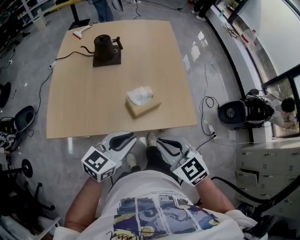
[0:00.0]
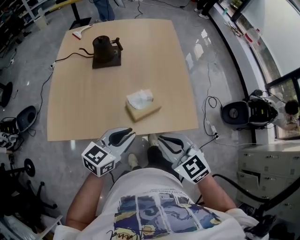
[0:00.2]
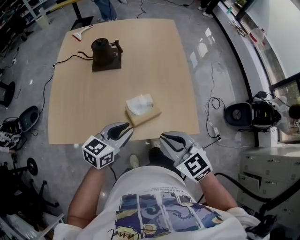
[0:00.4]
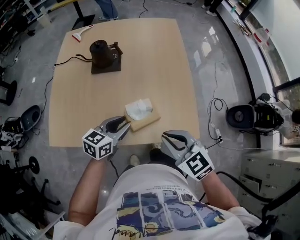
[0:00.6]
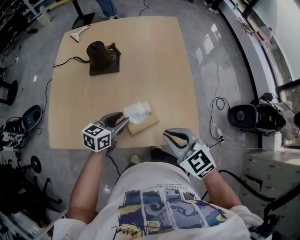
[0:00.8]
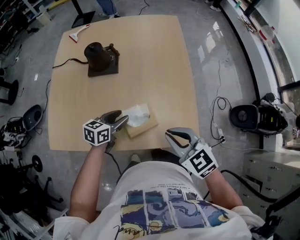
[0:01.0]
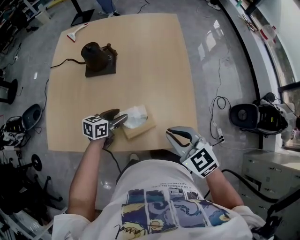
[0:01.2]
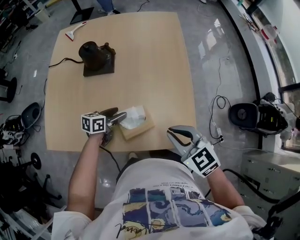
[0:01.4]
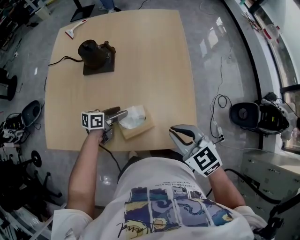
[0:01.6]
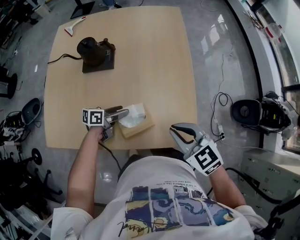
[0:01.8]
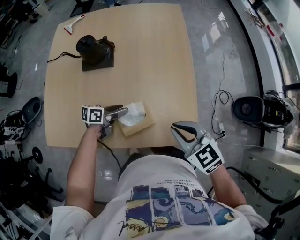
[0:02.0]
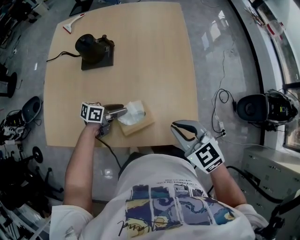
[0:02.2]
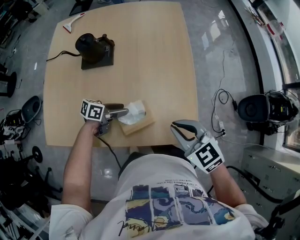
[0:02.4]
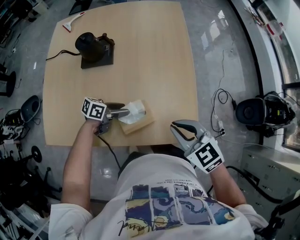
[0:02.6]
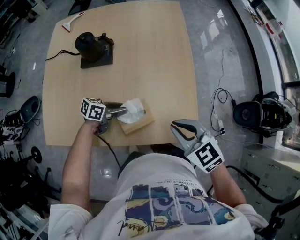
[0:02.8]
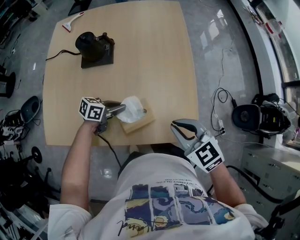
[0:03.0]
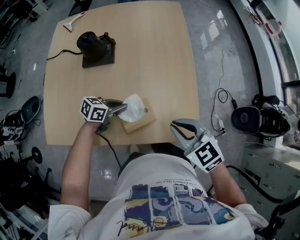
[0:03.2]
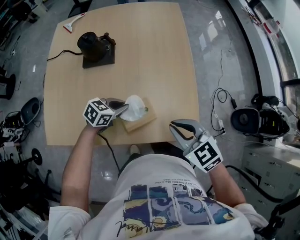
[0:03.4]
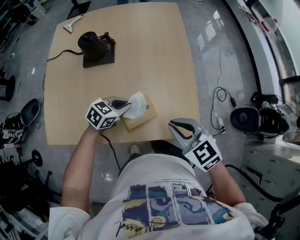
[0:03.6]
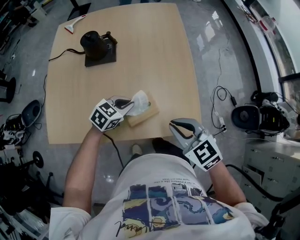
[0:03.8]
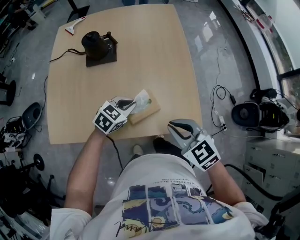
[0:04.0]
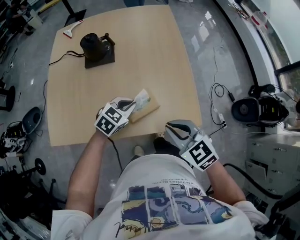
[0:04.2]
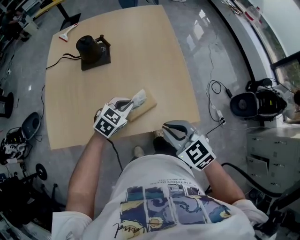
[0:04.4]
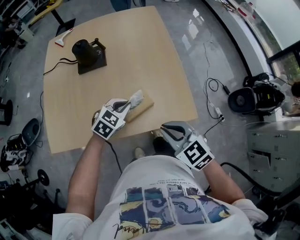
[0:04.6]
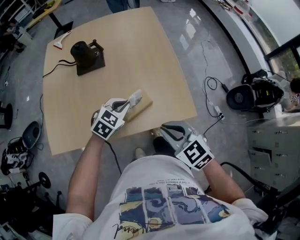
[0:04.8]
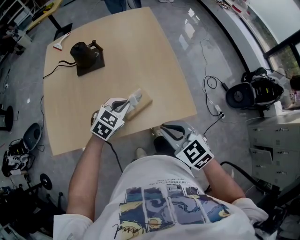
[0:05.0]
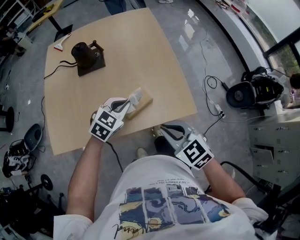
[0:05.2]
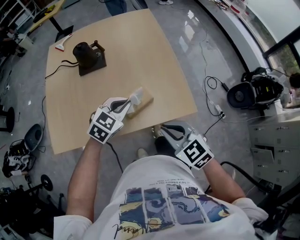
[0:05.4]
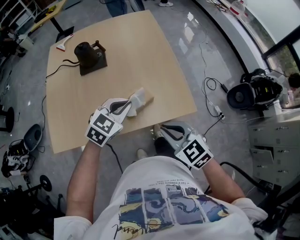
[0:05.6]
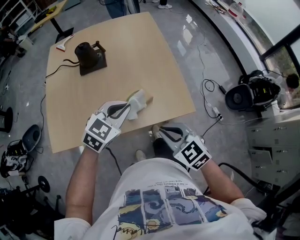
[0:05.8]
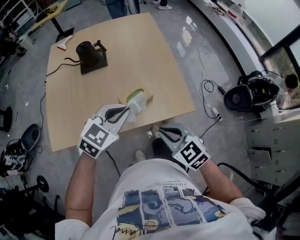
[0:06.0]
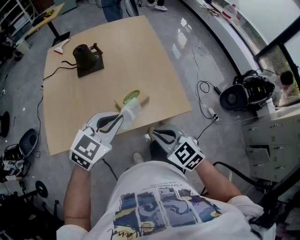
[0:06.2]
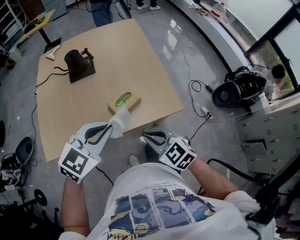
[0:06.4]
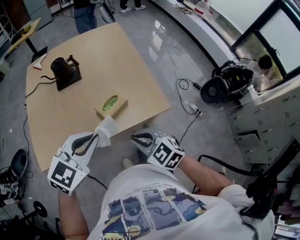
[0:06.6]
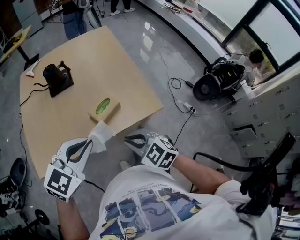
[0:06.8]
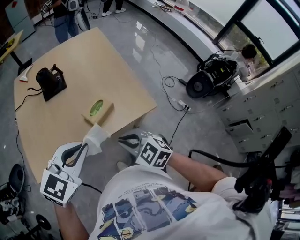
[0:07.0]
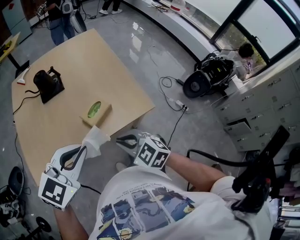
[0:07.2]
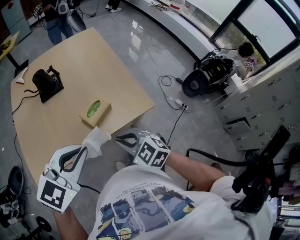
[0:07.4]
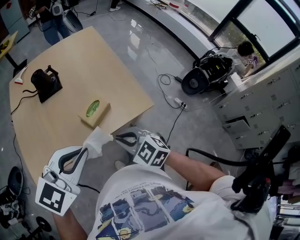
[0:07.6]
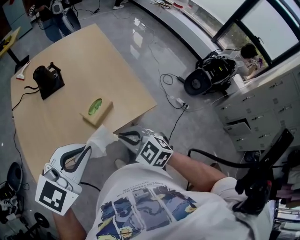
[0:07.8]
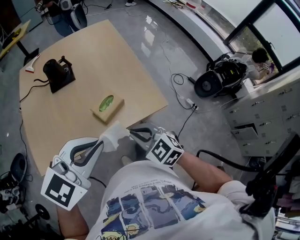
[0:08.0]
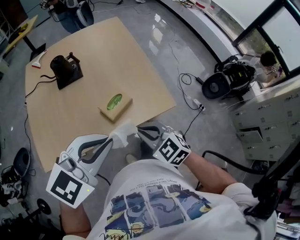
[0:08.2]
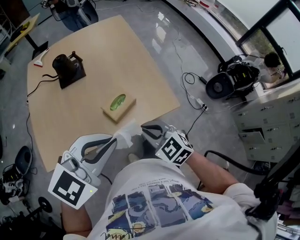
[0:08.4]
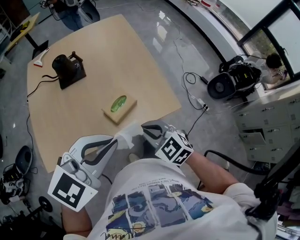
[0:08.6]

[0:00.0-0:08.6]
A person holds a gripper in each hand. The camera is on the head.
0:00.0 to 0:01.4: The right gripper travels forward and to the right by roughly 20 cm. The left gripper is displaced forward and downward by some 30 cm, changes its angle by roughly 40 degrees, and opens up.
0:01.4 to 0:02.8: The left gripper changes its angle by approximately 20 degrees, and closes up.
0:02.8 to 0:04.4: The right gripper moves roughly 10 cm. Meanwhile the left gripper is displaced upward by roughly 10 cm, rolls clockwise, seen from behind, by about 50 degrees, and closes up.
0:04.4 to 0:05.8: The left gripper is displaced upward and backward by some 15 cm. The right gripper shifts about 5 cm backward.
0:05.8 to 0:07.2: The left gripper goes about 15 cm backward and upward, while the right gripper ends up roughly 5 cm from where it was.
0:07.2 to 0:08.6: The right gripper is displaced forward by roughly 5 cm. The left gripper changes place by some 5 cm.

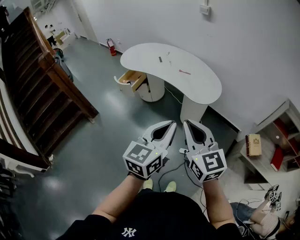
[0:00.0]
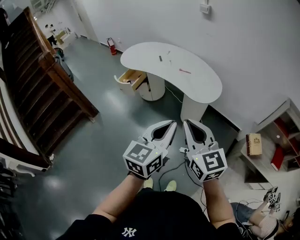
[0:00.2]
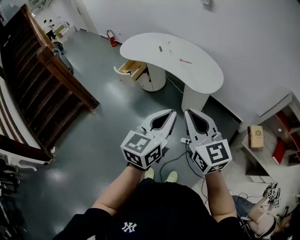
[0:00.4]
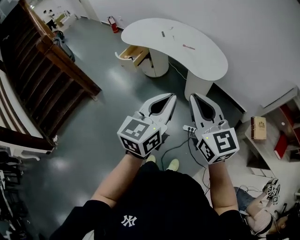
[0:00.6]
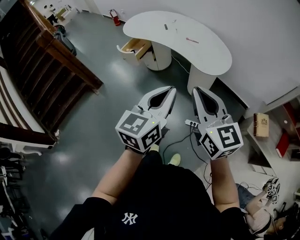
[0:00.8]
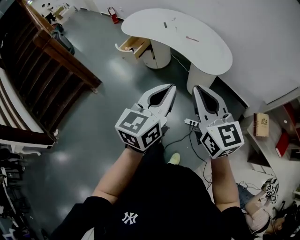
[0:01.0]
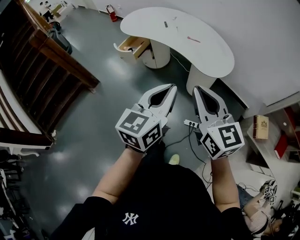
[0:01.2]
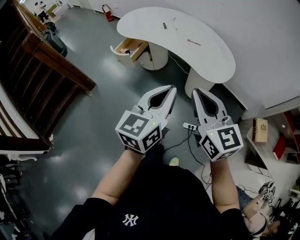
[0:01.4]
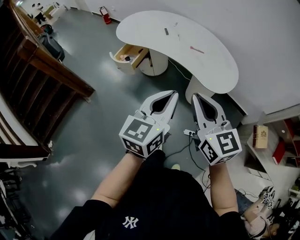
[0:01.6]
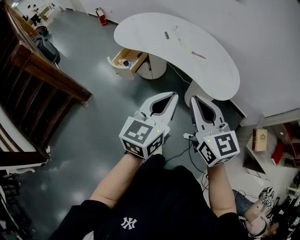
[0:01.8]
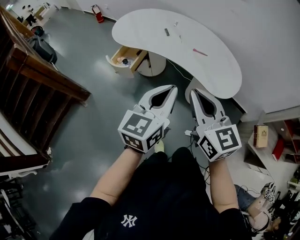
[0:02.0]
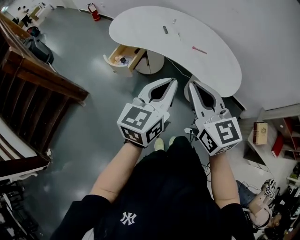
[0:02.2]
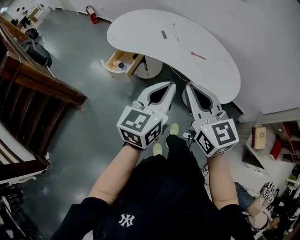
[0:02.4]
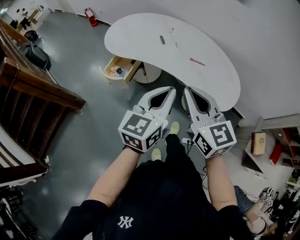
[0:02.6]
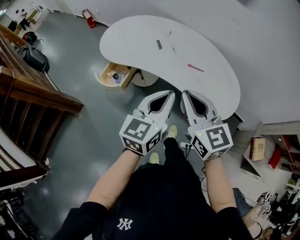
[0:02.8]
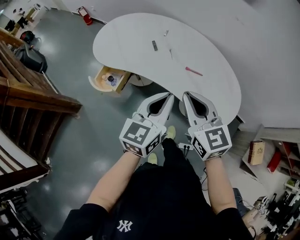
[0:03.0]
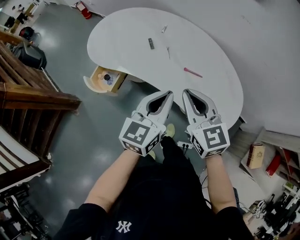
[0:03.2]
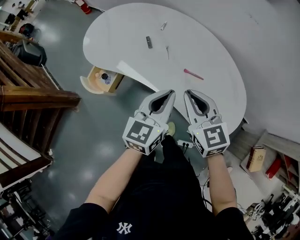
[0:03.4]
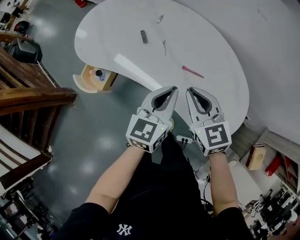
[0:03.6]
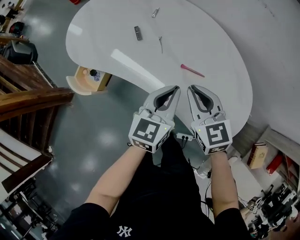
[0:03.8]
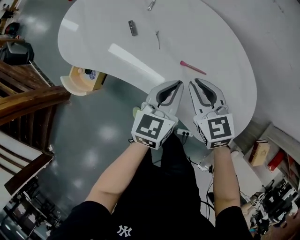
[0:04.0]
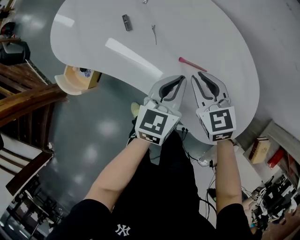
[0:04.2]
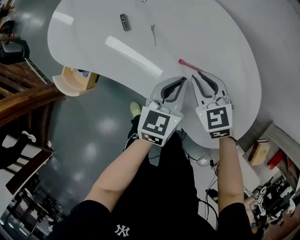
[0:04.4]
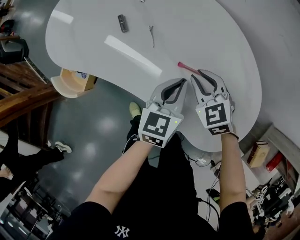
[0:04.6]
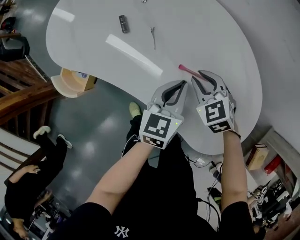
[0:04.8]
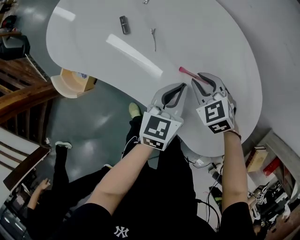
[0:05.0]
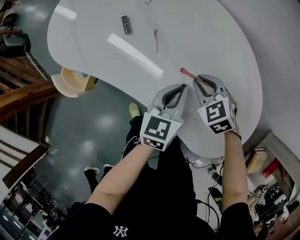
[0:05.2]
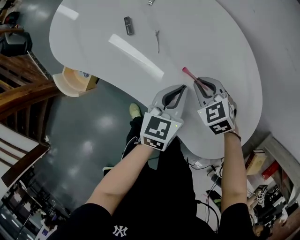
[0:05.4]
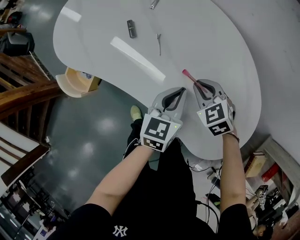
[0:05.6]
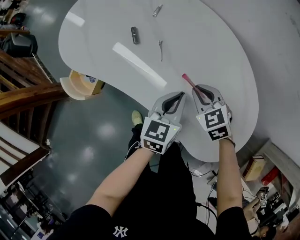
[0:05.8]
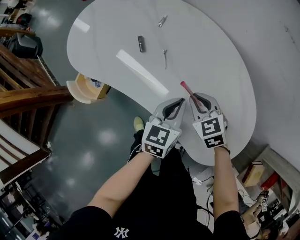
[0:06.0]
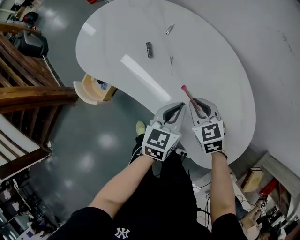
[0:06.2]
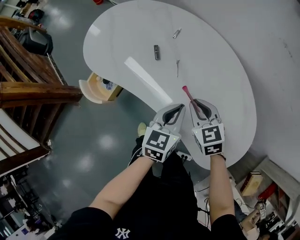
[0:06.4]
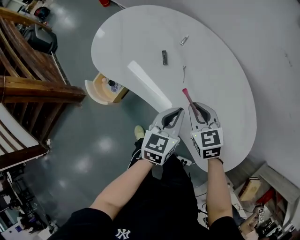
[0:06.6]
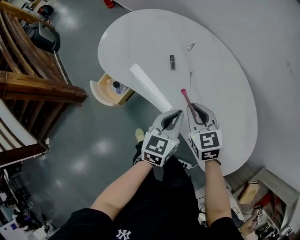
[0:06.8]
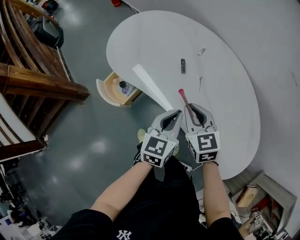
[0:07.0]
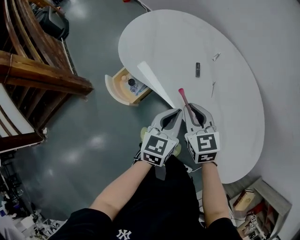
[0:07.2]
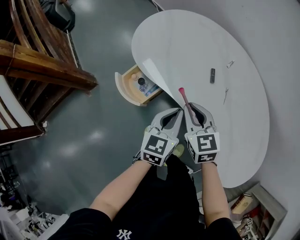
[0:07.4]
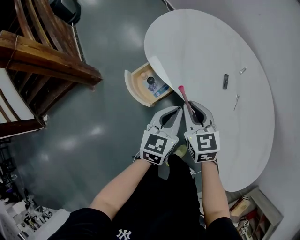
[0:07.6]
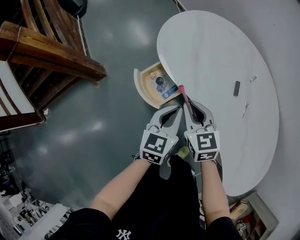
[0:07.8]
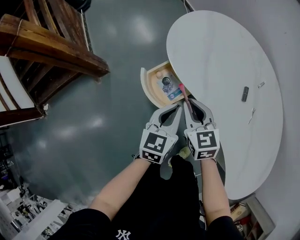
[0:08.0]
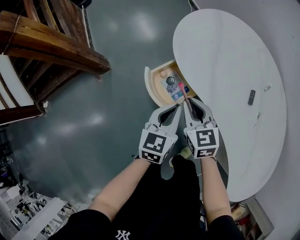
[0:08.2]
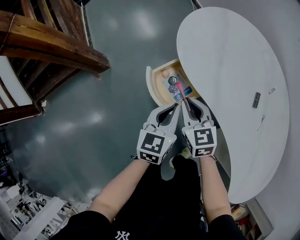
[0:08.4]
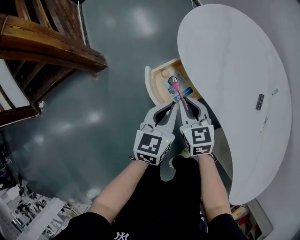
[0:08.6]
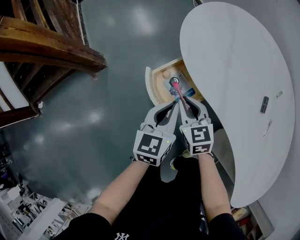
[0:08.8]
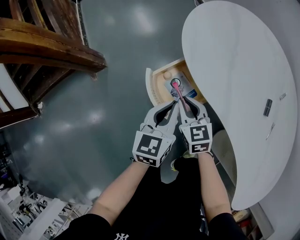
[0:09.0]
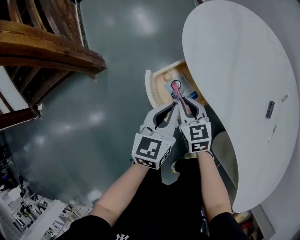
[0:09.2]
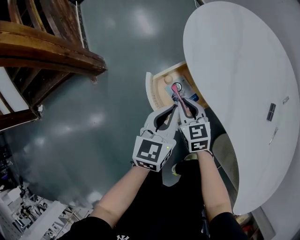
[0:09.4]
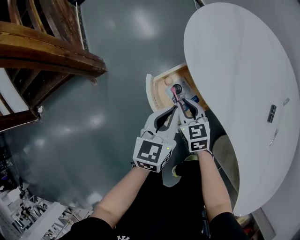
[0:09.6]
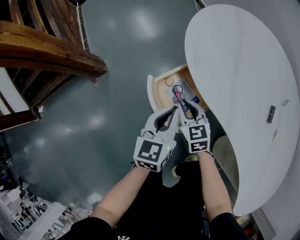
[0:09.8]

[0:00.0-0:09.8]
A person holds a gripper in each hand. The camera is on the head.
0:00.0 to 0:01.4: Both grippers travel together forward, roughly 15 cm.
0:01.4 to 0:02.8: Both grippers travel together forward, approximately 30 cm.
0:02.8 to 0:04.2: The left gripper is displaced forward, downward and to the right by about 40 cm. Meanwhile the right gripper travels downward, forward and to the right by some 40 cm, and turns by approximately 20 degrees.
0:04.2 to 0:05.6: The right gripper goes roughly 10 cm downward, and changes its angle by some 20 degrees; the left gripper goes about 5 cm downward.
0:05.6 to 0:07.0: The two grippers go roughly 25 cm to the left and upward. The right gripper swivels about 20 degrees.
0:07.0 to 0:08.4: The grippers both shift to the left by some 35 cm.
0:08.4 to 0:09.8: The right gripper goes roughly 15 cm downward, while the left gripper is displaced downward by about 5 cm.

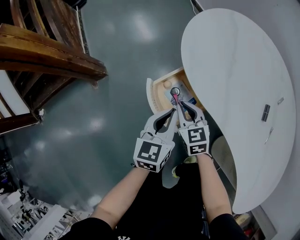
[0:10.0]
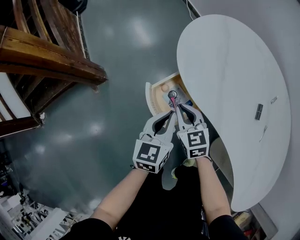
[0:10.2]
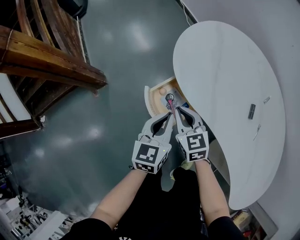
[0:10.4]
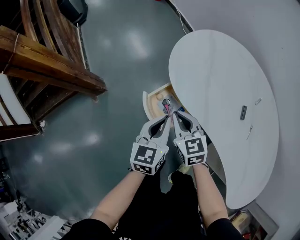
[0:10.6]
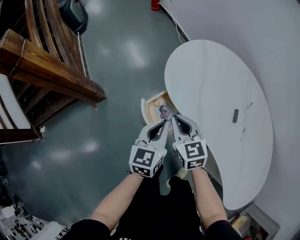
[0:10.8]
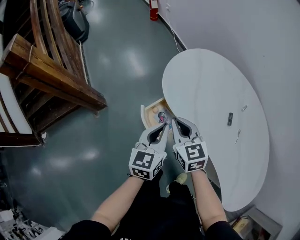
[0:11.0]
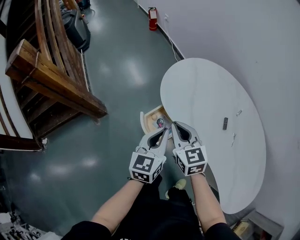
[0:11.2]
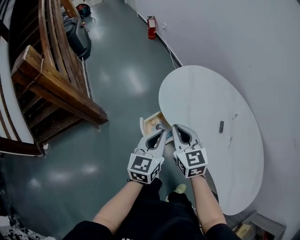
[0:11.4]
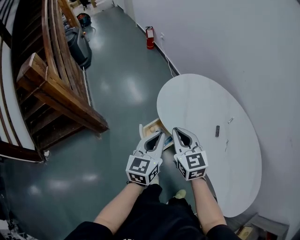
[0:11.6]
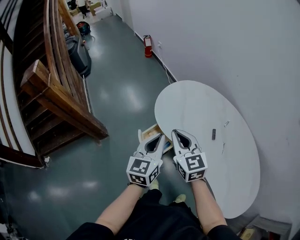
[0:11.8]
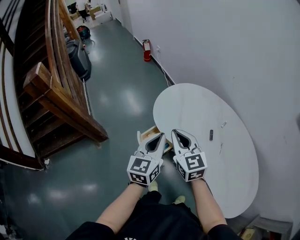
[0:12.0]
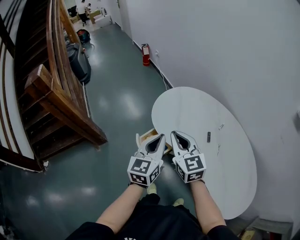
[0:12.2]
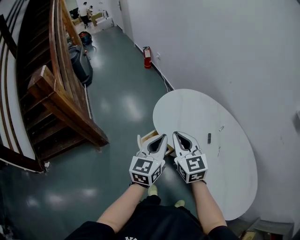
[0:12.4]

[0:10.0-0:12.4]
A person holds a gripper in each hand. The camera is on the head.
0:10.0 to 0:11.2: Both grippers move upward, approximately 25 cm.
0:11.2 to 0:12.4: The grippers both shift upward by some 15 cm.

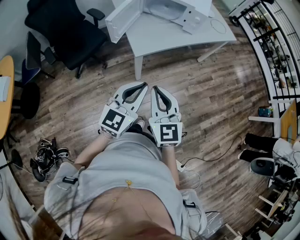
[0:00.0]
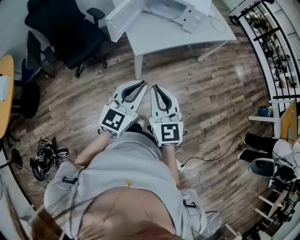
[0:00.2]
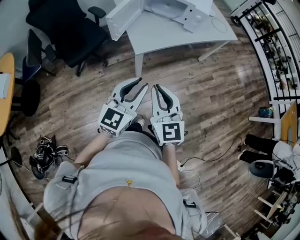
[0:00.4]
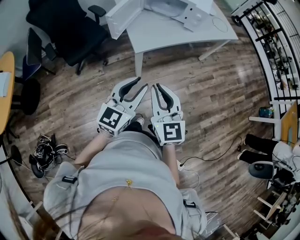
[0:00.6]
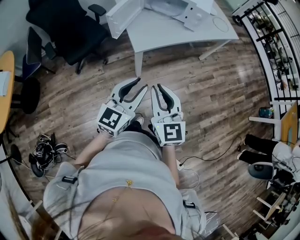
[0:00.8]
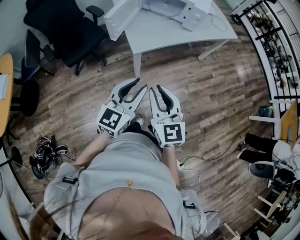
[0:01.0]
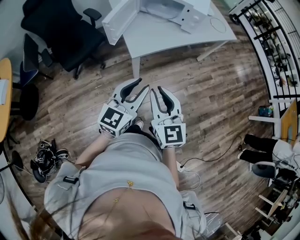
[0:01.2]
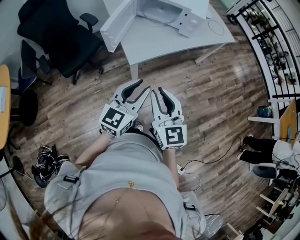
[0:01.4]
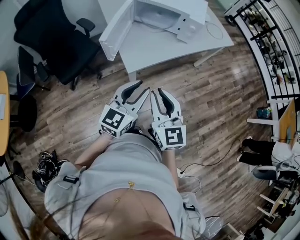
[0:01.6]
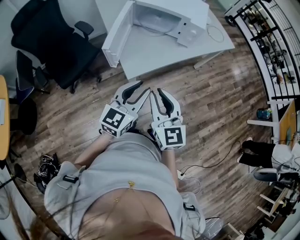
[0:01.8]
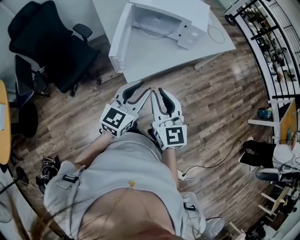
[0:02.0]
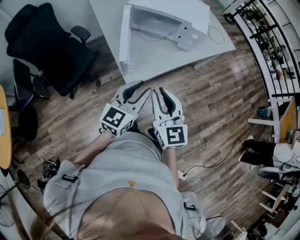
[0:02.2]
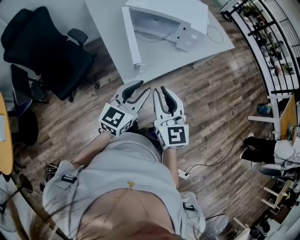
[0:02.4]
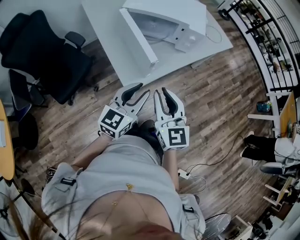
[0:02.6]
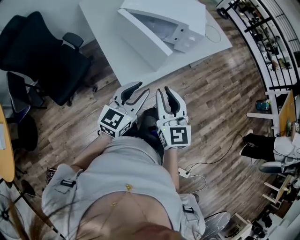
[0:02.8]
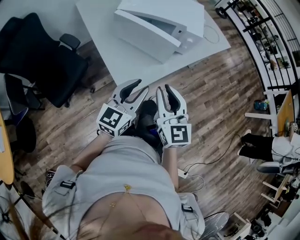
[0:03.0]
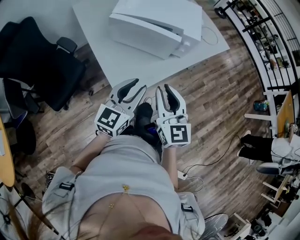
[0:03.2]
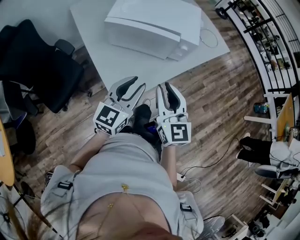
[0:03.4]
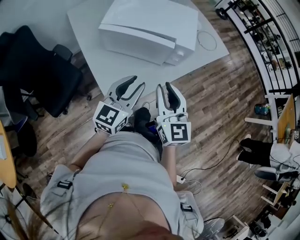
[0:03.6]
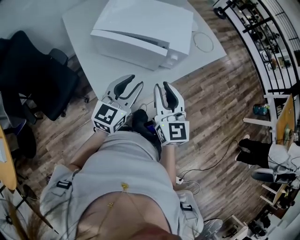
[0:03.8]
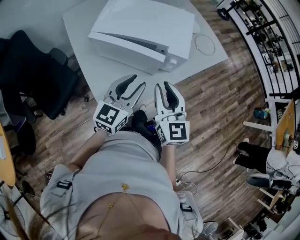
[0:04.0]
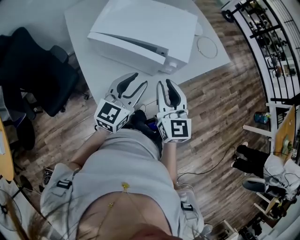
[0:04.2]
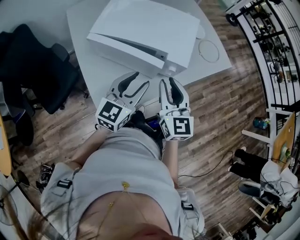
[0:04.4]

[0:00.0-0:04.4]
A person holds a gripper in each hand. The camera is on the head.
0:00.0 to 0:01.4: Both grippers move forward, roughly 5 cm.
0:01.4 to 0:03.0: The grippers both shift forward by approximately 20 cm.
0:03.0 to 0:04.4: The two grippers go approximately 20 cm forward.
